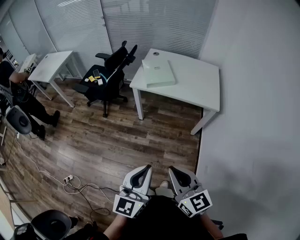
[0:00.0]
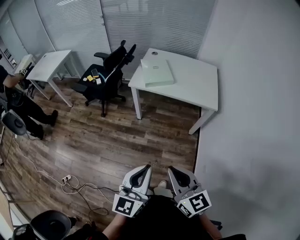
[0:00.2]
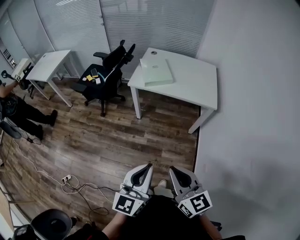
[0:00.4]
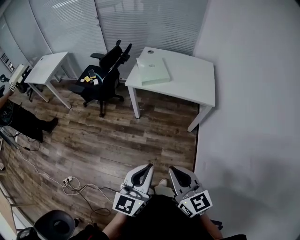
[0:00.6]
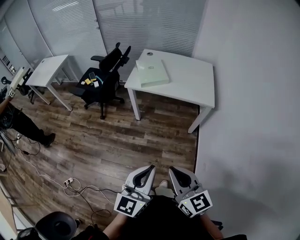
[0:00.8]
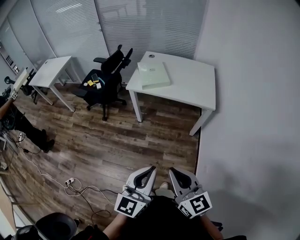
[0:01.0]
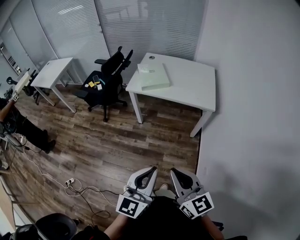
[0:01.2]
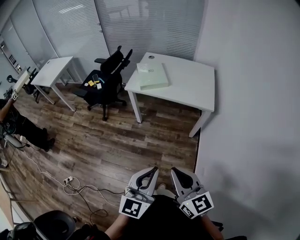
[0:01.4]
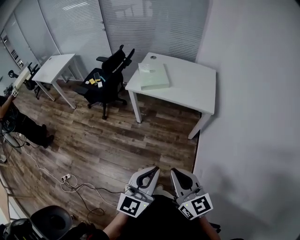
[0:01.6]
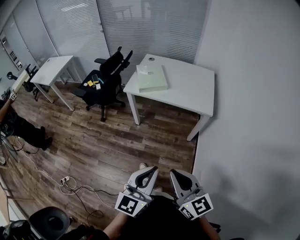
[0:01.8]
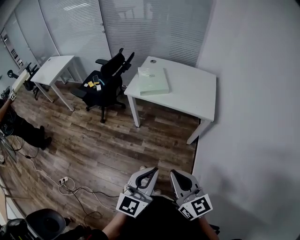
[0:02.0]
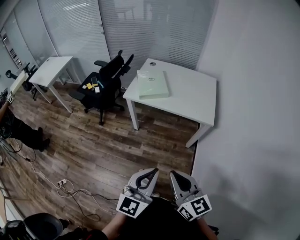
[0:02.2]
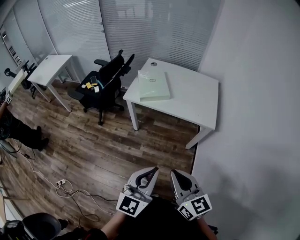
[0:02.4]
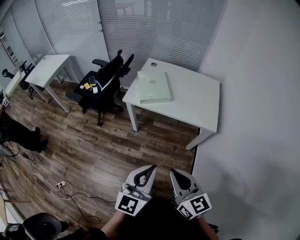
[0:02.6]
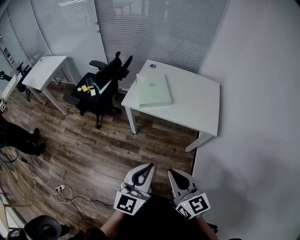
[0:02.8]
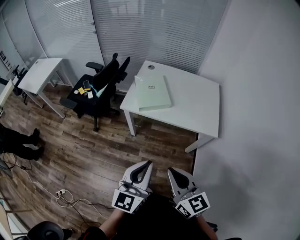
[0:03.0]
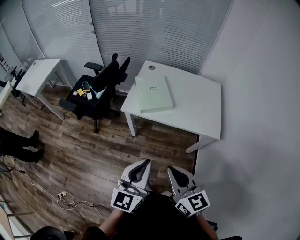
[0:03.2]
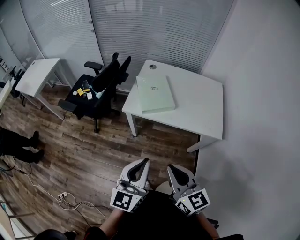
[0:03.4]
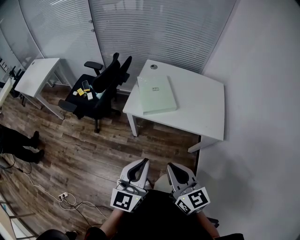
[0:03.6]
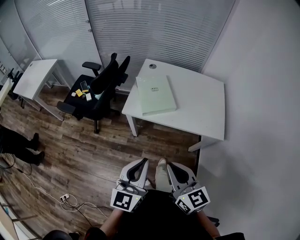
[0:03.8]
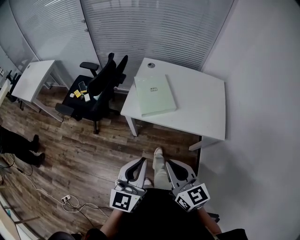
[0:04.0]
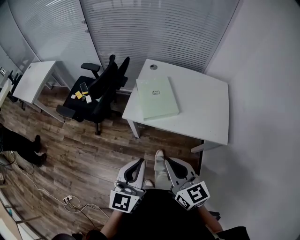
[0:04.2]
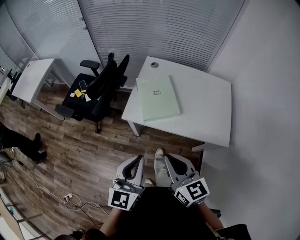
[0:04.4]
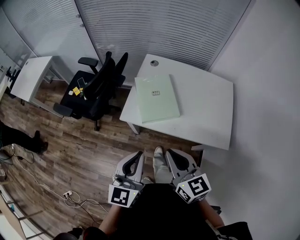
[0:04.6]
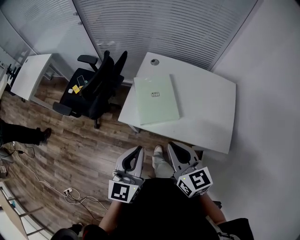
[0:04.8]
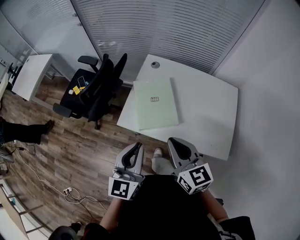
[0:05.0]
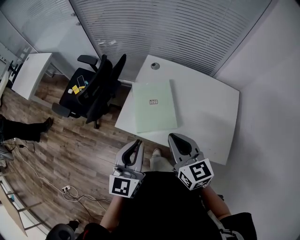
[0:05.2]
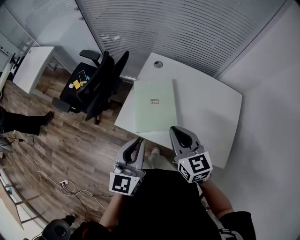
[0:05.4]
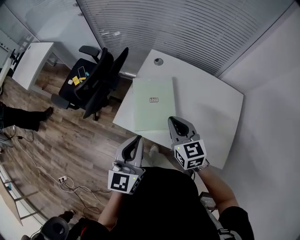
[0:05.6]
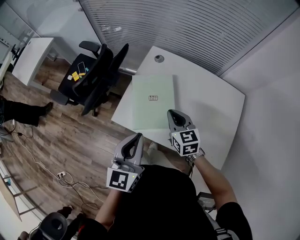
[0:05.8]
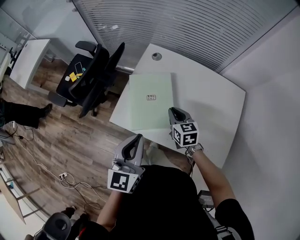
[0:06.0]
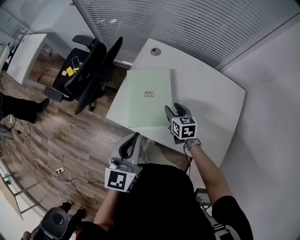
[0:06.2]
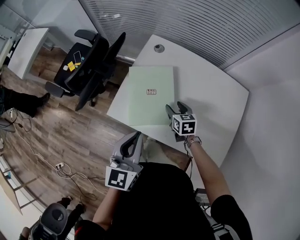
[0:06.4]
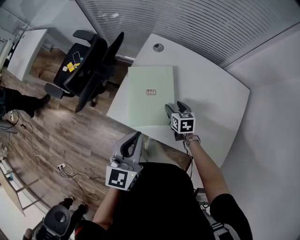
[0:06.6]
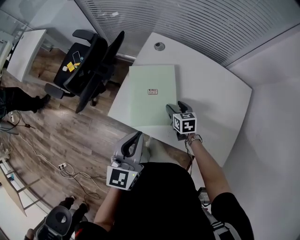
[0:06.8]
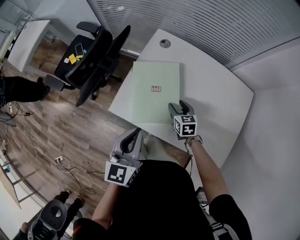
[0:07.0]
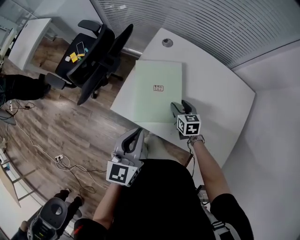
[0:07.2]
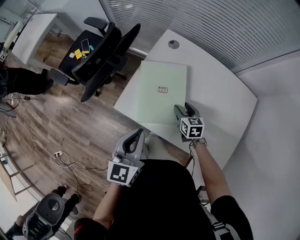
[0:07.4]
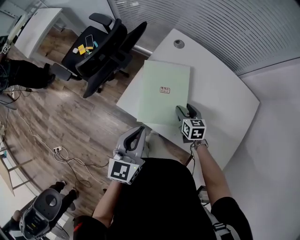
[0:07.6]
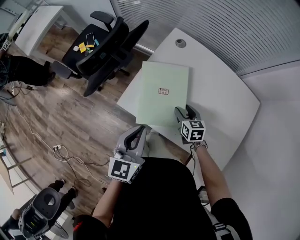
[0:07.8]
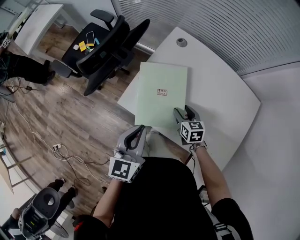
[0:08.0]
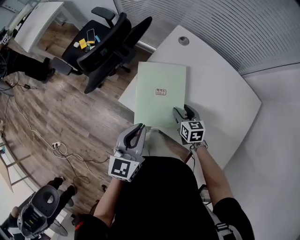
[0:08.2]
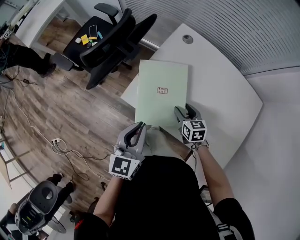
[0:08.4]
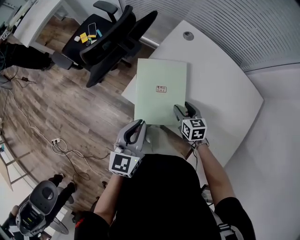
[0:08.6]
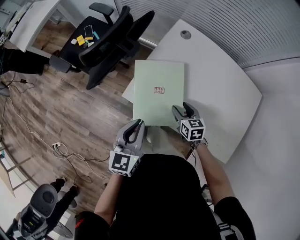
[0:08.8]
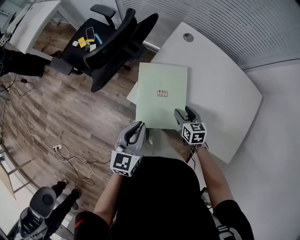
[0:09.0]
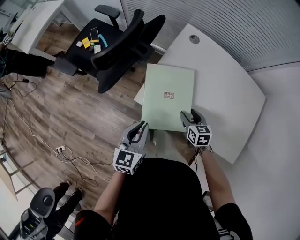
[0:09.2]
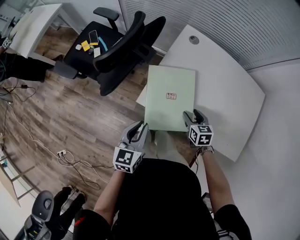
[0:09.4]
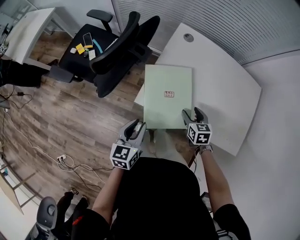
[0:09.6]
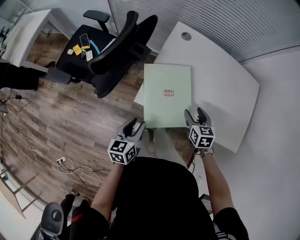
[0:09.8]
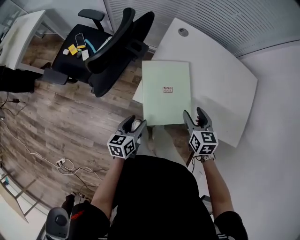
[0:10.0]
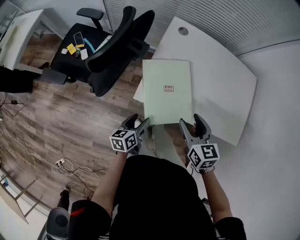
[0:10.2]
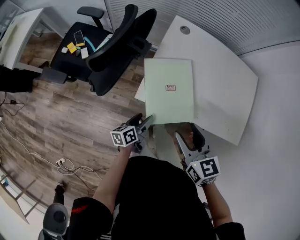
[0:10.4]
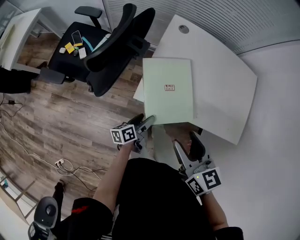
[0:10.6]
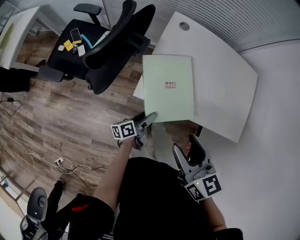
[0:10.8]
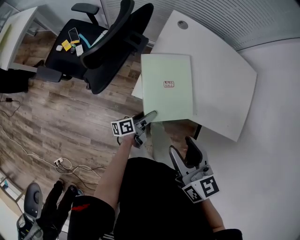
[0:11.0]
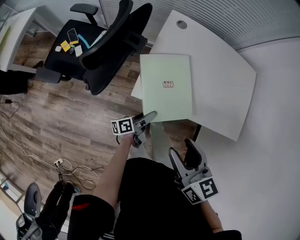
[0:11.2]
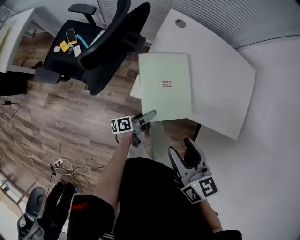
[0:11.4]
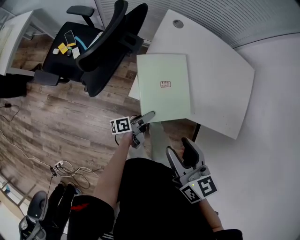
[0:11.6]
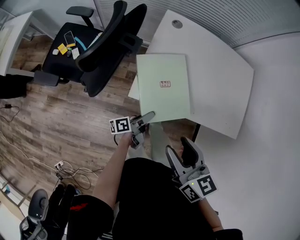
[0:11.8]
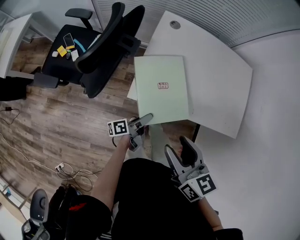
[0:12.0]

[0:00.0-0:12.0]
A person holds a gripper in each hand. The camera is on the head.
0:00.0 to 0:01.6: Both grippers move to the right, roughly 10 cm.
0:01.6 to 0:03.0: The grippers both shift forward by some 25 cm.
0:03.0 to 0:04.4: Both grippers move forward, roughly 20 cm.
0:04.4 to 0:06.0: The left gripper travels forward and to the right by approximately 25 cm. Meanwhile the right gripper is displaced forward, downward and to the right by about 40 cm, and swivels roughly 20 degrees.
0:06.0 to 0:07.6: Both grippers travel together downward, roughly 10 cm. The right gripper opens up.
0:07.6 to 0:09.0: The left gripper goes about 10 cm to the left and downward, while the right gripper goes about 5 cm to the left.
0:09.0 to 0:10.4: The right gripper moves upward, backward and to the left, roughly 25 cm. The left gripper is displaced downward by about 15 cm, rotates around the line of its fingers by some 40 degrees, counterclockwise from behind, and opens up.
0:10.4 to 0:12.0: The right gripper moves some 5 cm; the left gripper turns by some 30 degrees.

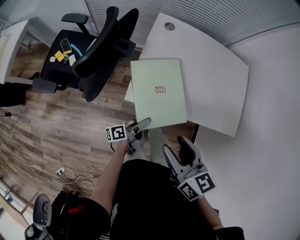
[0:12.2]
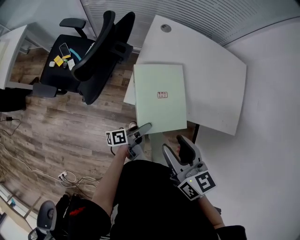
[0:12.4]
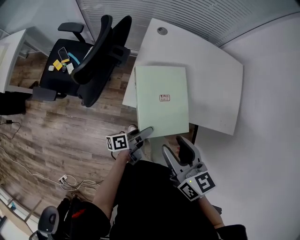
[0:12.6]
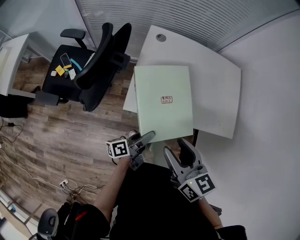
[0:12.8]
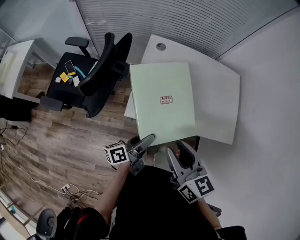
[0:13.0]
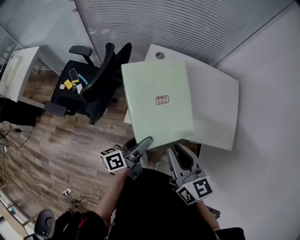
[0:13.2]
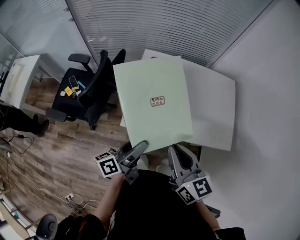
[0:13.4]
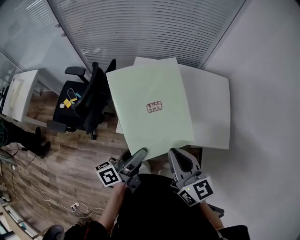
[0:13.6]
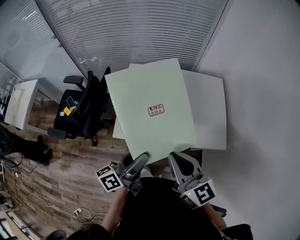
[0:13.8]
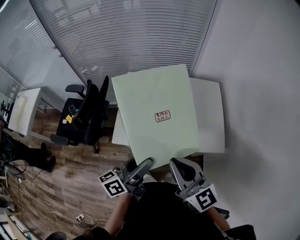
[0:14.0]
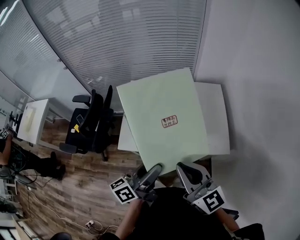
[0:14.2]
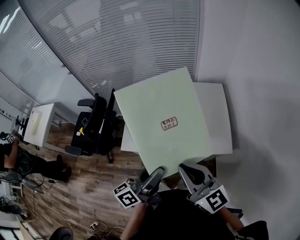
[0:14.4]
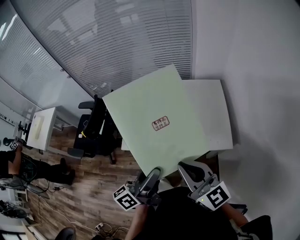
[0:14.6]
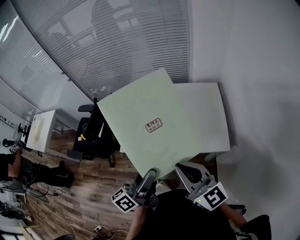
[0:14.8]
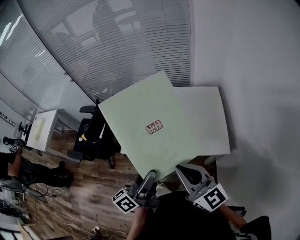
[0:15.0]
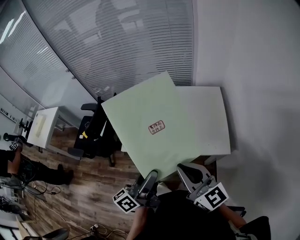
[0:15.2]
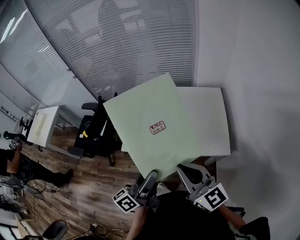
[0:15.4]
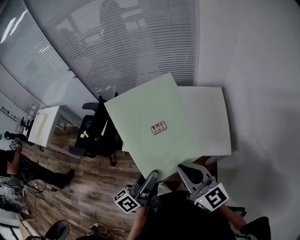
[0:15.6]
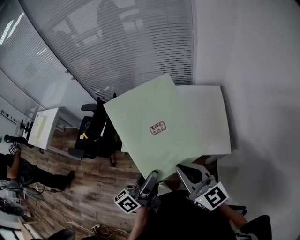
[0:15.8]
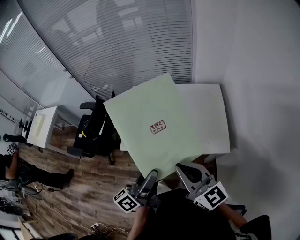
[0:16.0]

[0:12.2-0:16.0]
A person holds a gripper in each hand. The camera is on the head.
0:12.2 to 0:13.4: The right gripper moves upward and to the right, approximately 10 cm, and closes. Meanwhile the left gripper goes roughly 25 cm upward, and swivels roughly 30 degrees.
0:13.4 to 0:14.8: The right gripper heads to the right, backward and upward, covering roughly 20 cm, and changes its angle by roughly 20 degrees. The left gripper shifts approximately 25 cm to the right, upward and backward.
0:14.8 to 0:16.0: The grippers stay close to where they were, moving slightly.

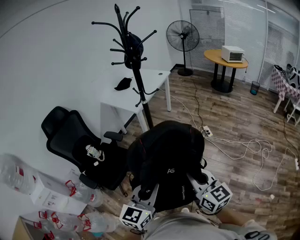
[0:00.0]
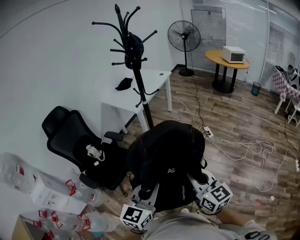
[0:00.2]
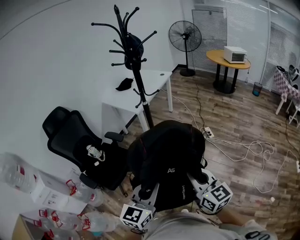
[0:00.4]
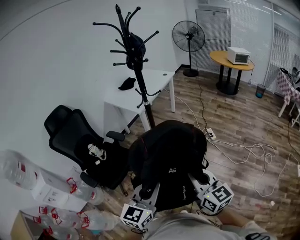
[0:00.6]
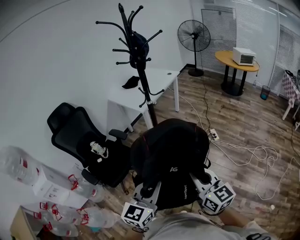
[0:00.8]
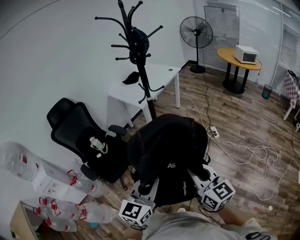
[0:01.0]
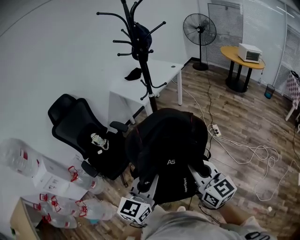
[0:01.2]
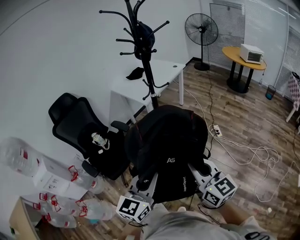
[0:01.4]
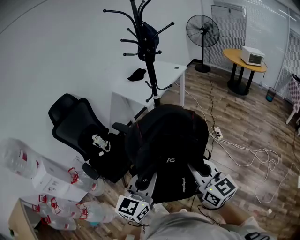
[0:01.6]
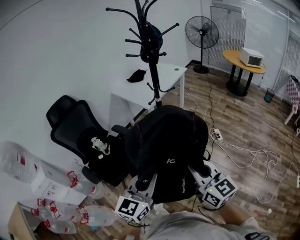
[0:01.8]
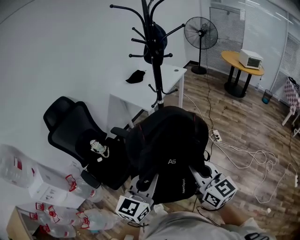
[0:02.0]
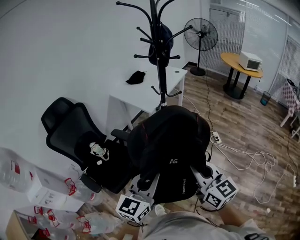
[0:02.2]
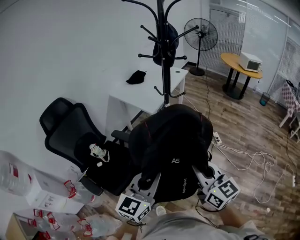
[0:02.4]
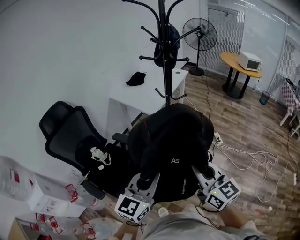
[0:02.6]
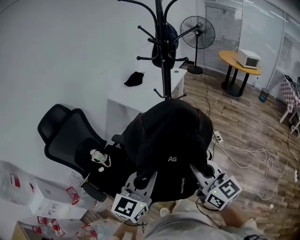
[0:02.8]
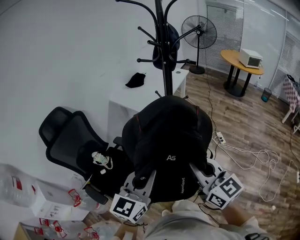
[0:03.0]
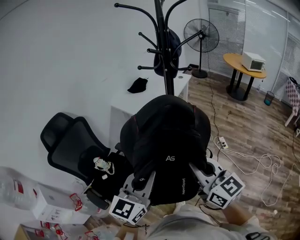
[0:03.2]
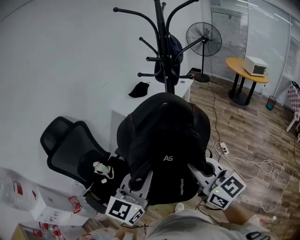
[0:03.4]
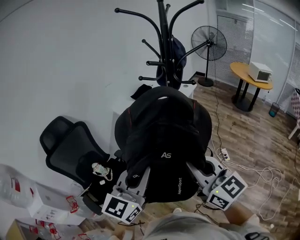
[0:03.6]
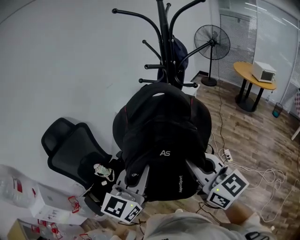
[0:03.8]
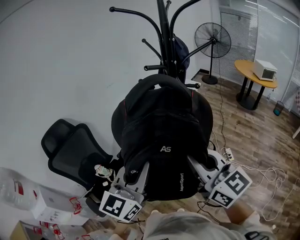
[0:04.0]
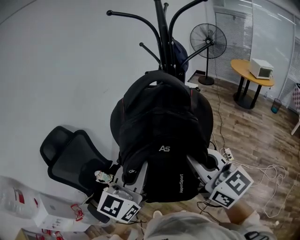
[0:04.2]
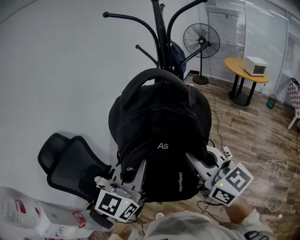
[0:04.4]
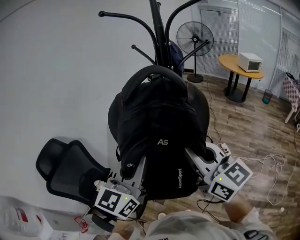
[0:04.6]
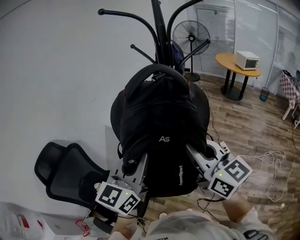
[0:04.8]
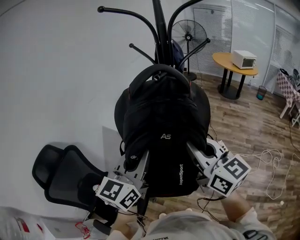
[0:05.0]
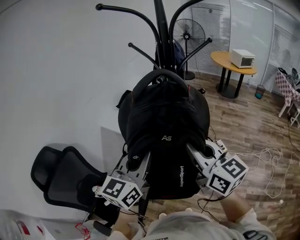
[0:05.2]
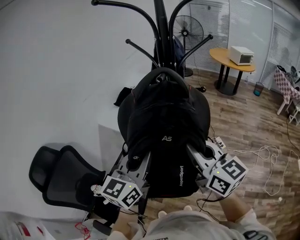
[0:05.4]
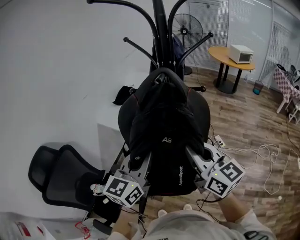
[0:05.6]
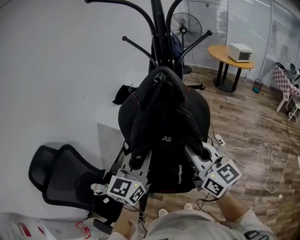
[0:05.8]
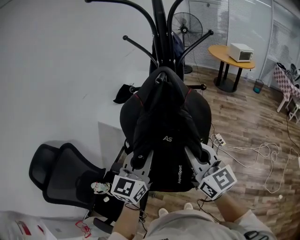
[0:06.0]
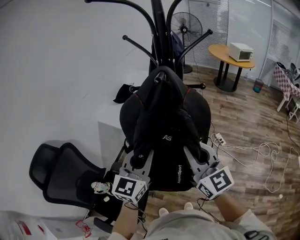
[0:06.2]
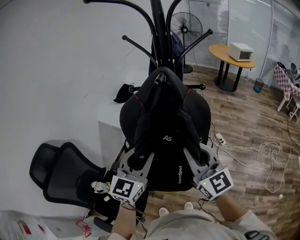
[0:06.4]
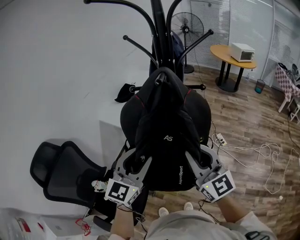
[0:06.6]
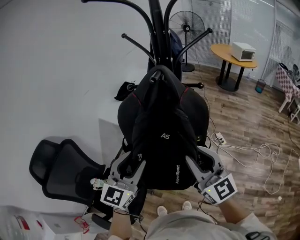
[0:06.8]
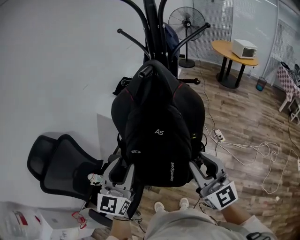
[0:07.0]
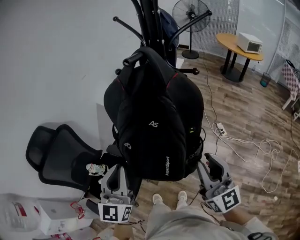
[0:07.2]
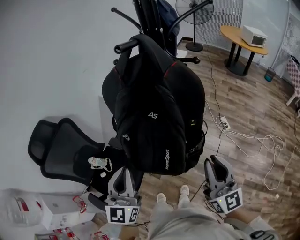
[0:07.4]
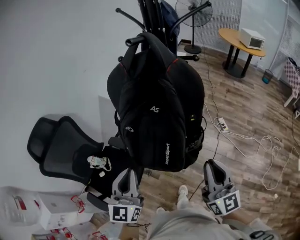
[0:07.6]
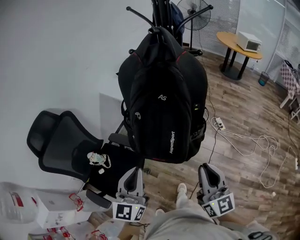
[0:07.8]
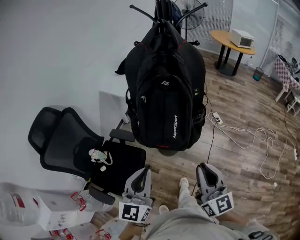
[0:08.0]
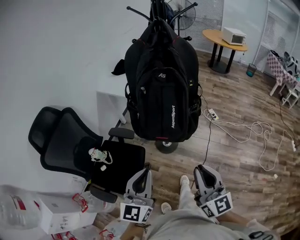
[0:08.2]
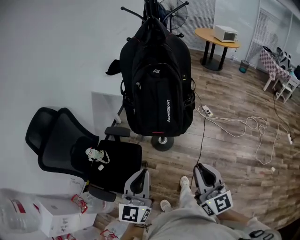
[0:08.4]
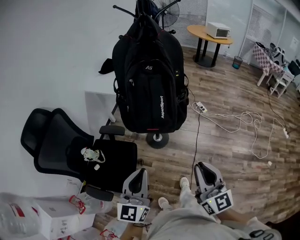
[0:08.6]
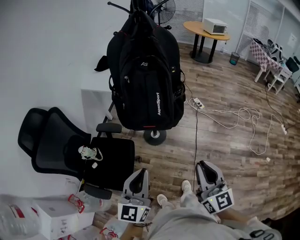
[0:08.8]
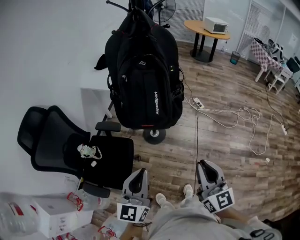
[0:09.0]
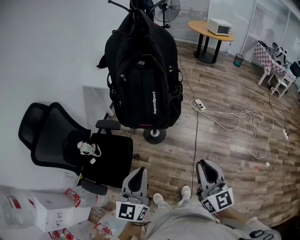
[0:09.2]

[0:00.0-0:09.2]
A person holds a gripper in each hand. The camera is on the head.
0:00.0 to 0:01.6: Both grippers travel together forward, some 10 cm.
0:01.6 to 0:03.0: The grippers both shift forward and to the left by about 20 cm.
0:03.0 to 0:04.6: Both grippers travel together forward and upward, approximately 25 cm.
0:04.6 to 0:06.2: The right gripper heads downward and forward, covering approximately 10 cm; the left gripper heads forward and downward, covering approximately 15 cm.
0:06.2 to 0:07.6: The left gripper shifts roughly 15 cm backward and downward, rotates some 20 degrees, and opens, then closes again. Meanwhile the right gripper shifts some 20 cm backward, to the right and downward.
0:07.6 to 0:09.2: The two grippers go roughly 25 cm backward.
